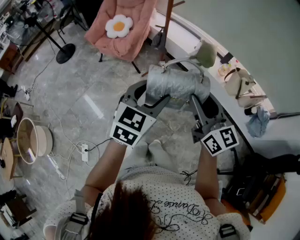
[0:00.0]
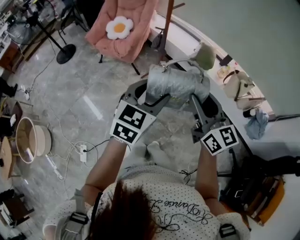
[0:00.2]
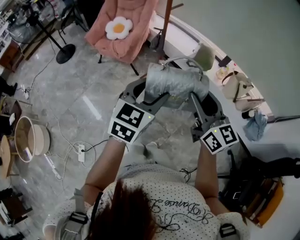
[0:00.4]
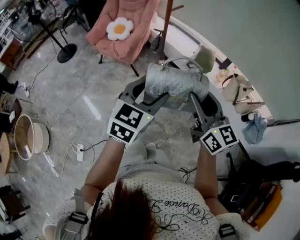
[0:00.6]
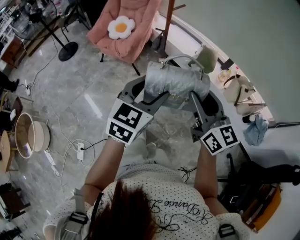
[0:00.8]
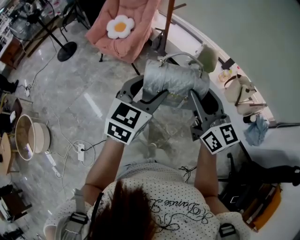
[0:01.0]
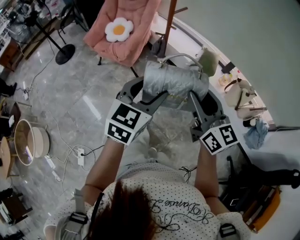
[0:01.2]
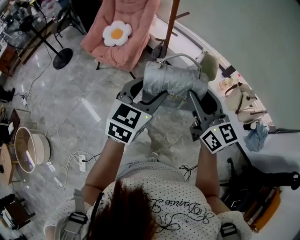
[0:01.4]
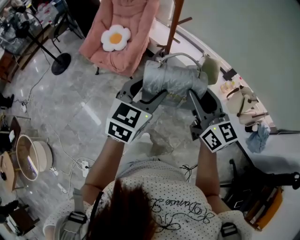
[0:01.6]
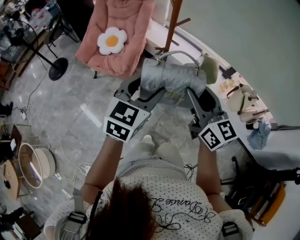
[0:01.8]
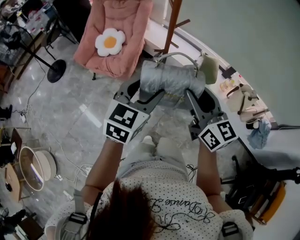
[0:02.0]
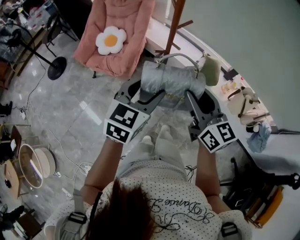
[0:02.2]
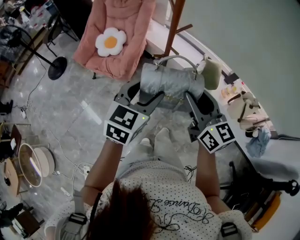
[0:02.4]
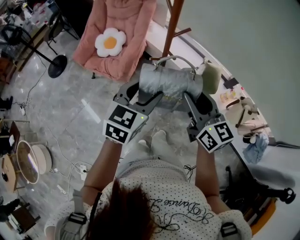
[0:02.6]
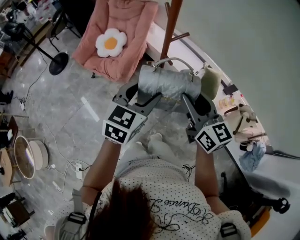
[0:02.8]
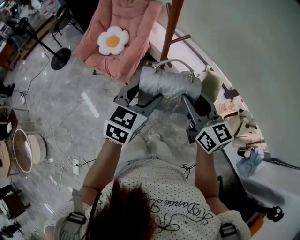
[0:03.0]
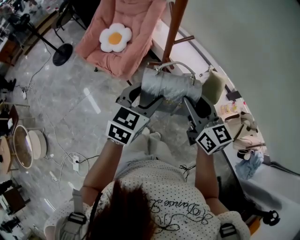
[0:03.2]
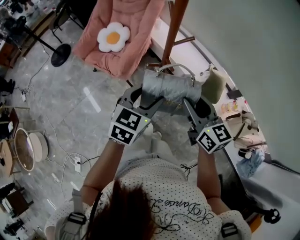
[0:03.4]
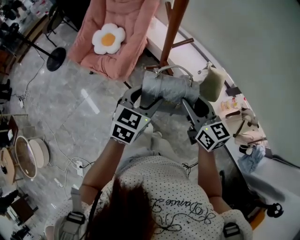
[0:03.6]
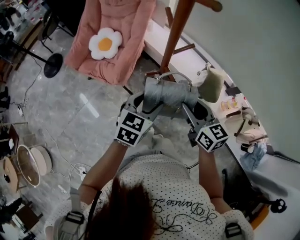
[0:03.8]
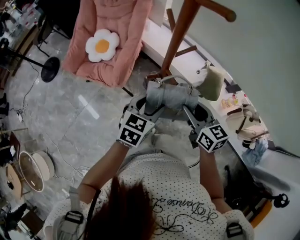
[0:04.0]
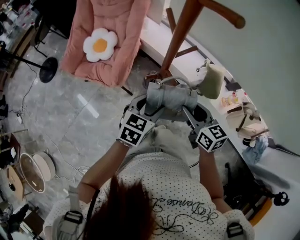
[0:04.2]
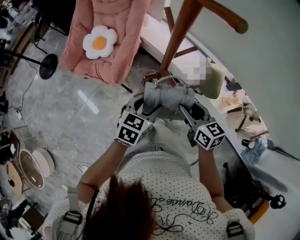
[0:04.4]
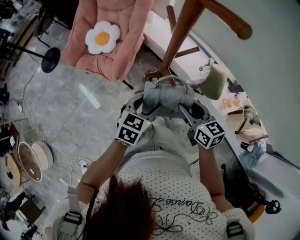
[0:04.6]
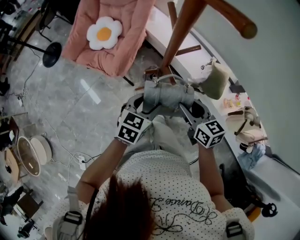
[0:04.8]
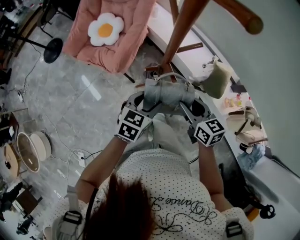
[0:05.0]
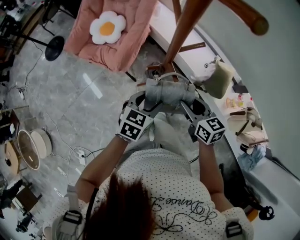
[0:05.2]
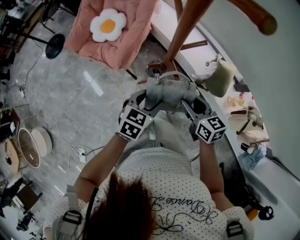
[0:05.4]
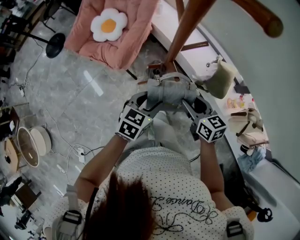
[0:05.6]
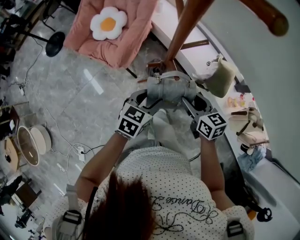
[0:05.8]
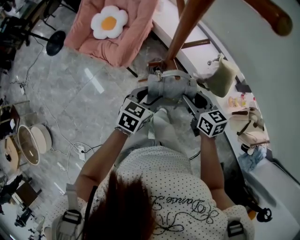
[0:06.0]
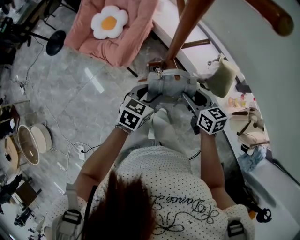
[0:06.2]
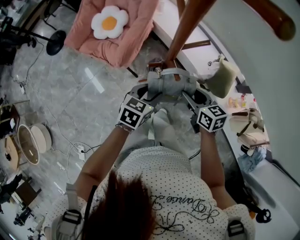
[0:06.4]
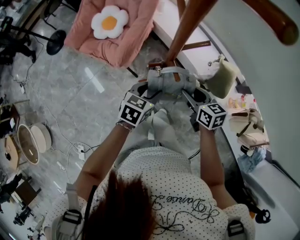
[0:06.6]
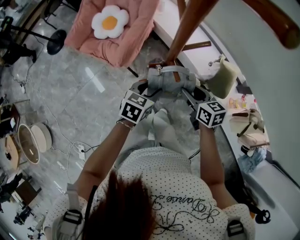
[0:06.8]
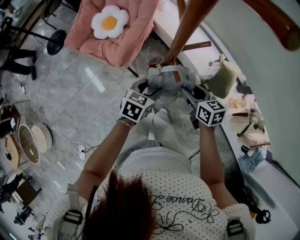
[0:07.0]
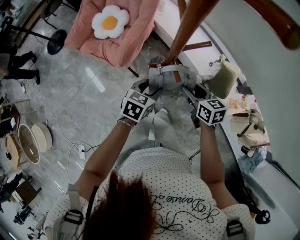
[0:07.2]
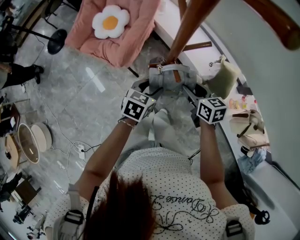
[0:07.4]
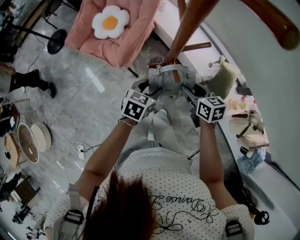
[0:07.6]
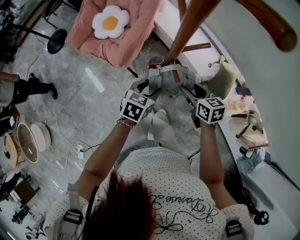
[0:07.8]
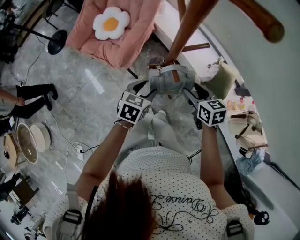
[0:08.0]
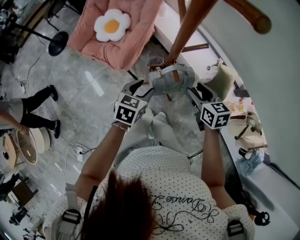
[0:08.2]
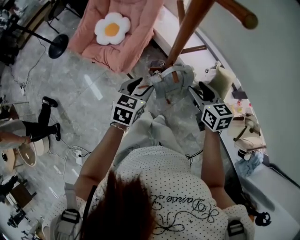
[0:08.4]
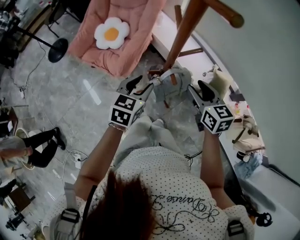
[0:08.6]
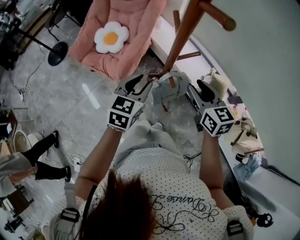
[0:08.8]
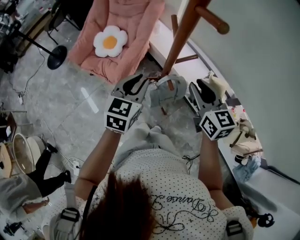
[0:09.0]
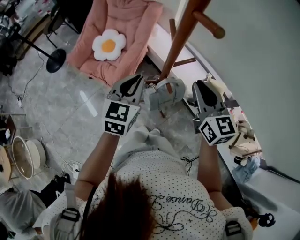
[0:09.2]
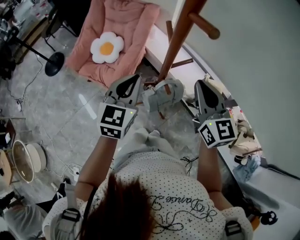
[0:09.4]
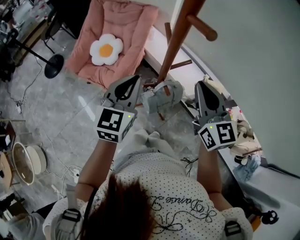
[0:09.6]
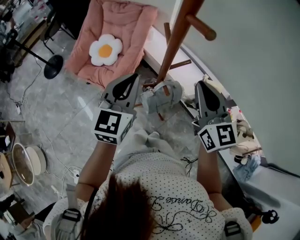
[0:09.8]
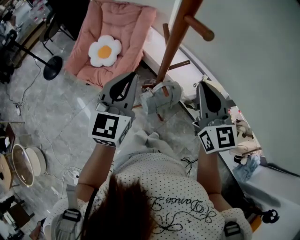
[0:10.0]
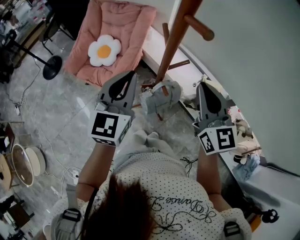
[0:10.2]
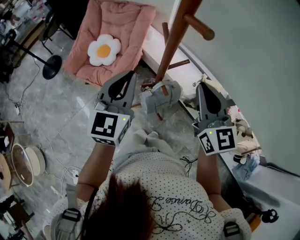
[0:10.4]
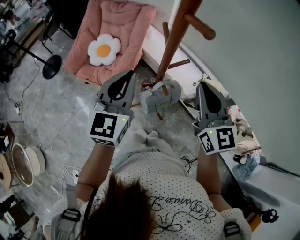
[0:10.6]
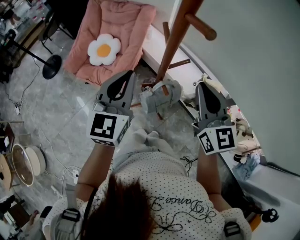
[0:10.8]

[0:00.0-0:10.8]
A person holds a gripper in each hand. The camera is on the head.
0.0 to 1.6 s: Both grippers travel together forward, about 20 cm.
1.6 to 3.0 s: The two grippers go some 20 cm forward.
3.0 to 4.6 s: The grippers both shift downward and forward by roughly 15 cm. The right gripper rotates about 20 degrees.
4.6 to 6.2 s: The two grippers go about 5 cm downward.
6.2 to 7.8 s: The grippers stay close to where they were, moving slightly.
7.8 to 9.2 s: The two grippers go approximately 20 cm upward. The left gripper rotates about 30 degrees, and closes its fingers. The right gripper turns by about 40 degrees, and closes up.
9.2 to 10.8 s: The left gripper heads upward, covering roughly 10 cm. Meanwhile the right gripper shifts some 5 cm upward.

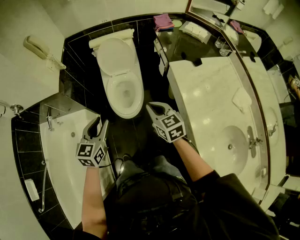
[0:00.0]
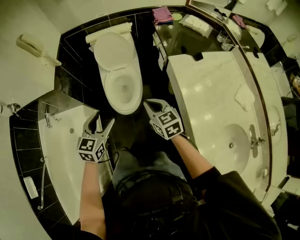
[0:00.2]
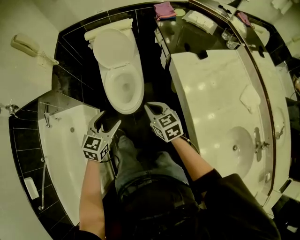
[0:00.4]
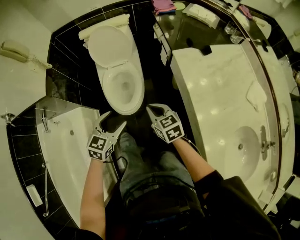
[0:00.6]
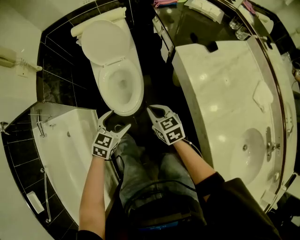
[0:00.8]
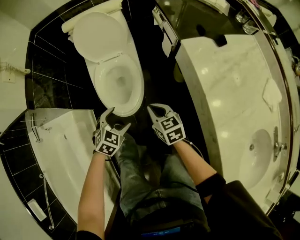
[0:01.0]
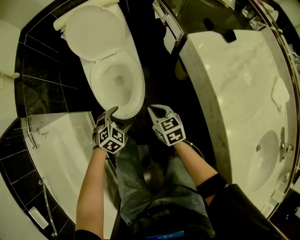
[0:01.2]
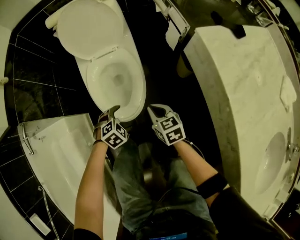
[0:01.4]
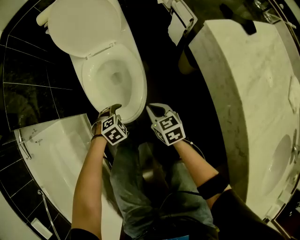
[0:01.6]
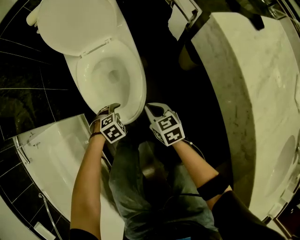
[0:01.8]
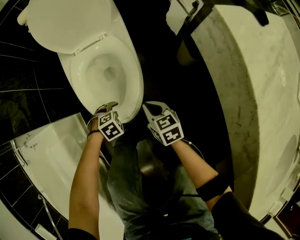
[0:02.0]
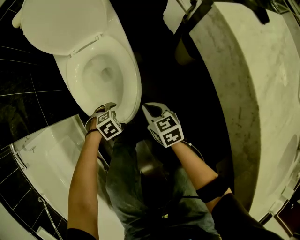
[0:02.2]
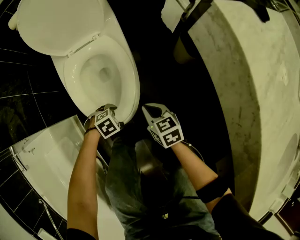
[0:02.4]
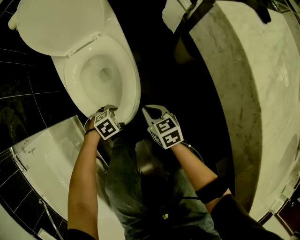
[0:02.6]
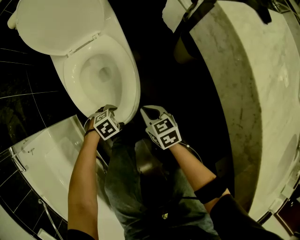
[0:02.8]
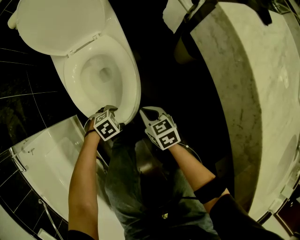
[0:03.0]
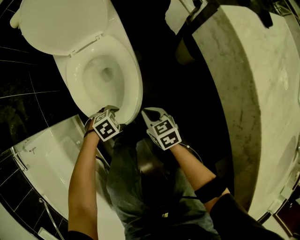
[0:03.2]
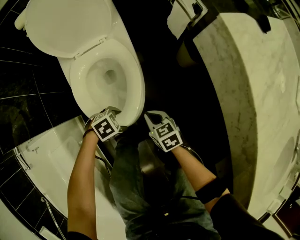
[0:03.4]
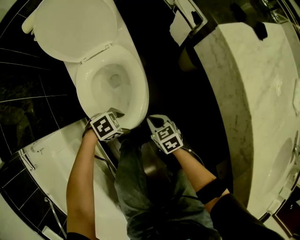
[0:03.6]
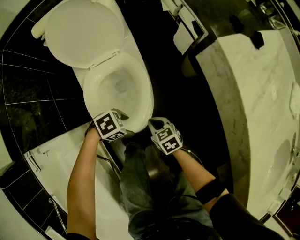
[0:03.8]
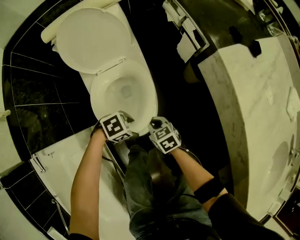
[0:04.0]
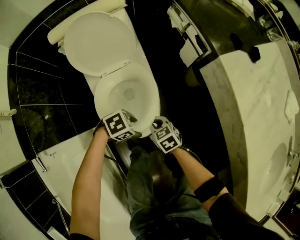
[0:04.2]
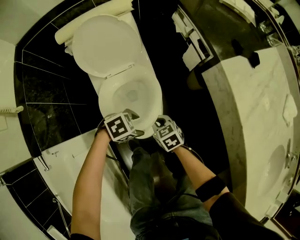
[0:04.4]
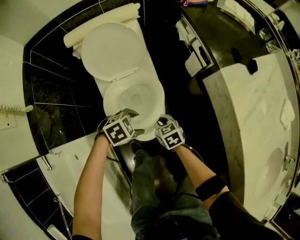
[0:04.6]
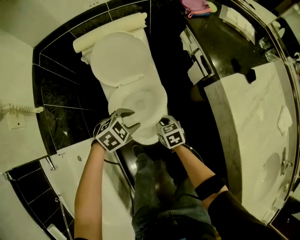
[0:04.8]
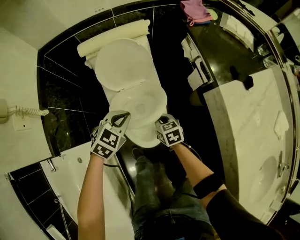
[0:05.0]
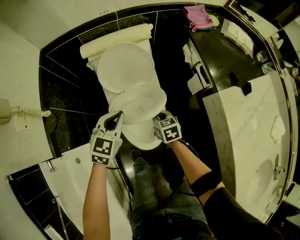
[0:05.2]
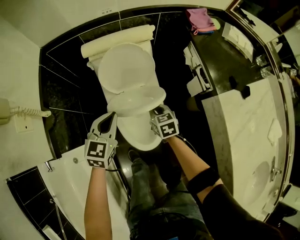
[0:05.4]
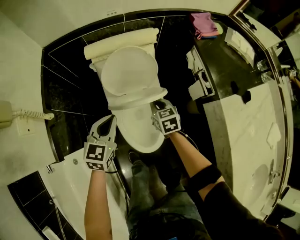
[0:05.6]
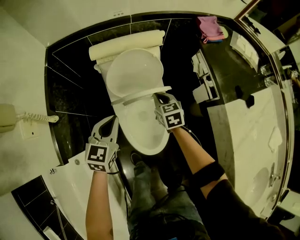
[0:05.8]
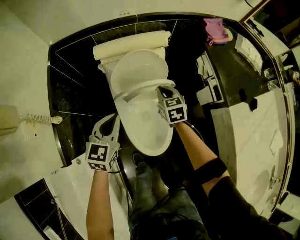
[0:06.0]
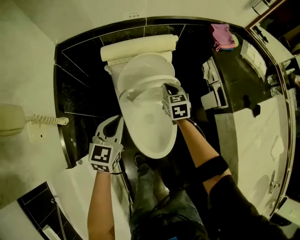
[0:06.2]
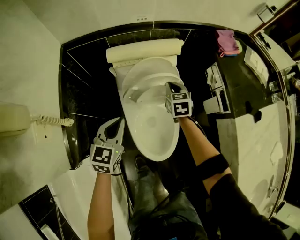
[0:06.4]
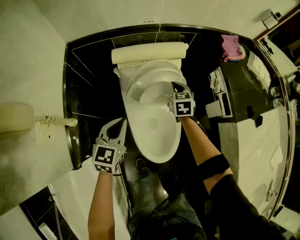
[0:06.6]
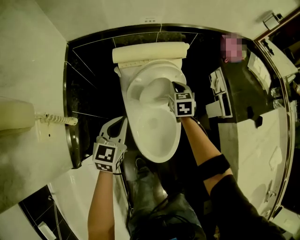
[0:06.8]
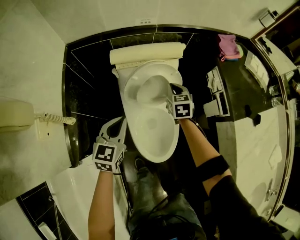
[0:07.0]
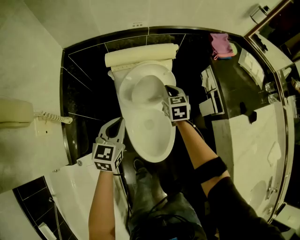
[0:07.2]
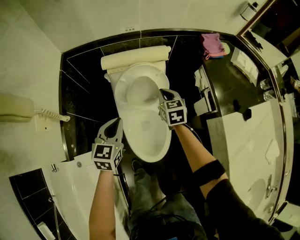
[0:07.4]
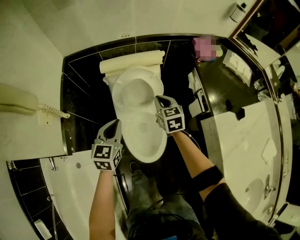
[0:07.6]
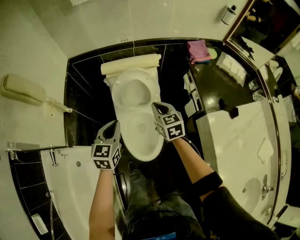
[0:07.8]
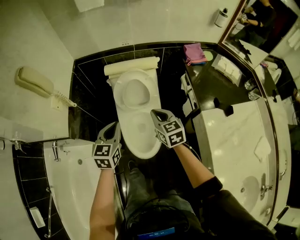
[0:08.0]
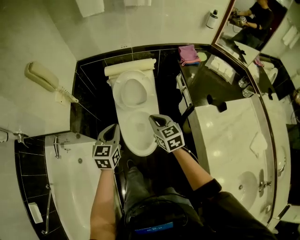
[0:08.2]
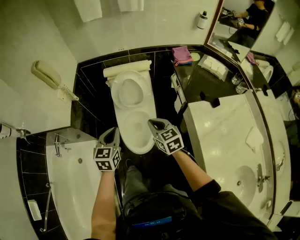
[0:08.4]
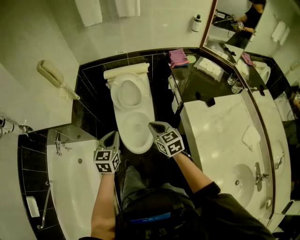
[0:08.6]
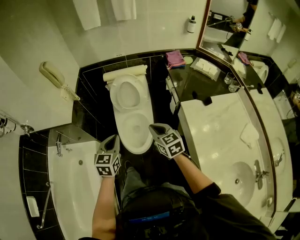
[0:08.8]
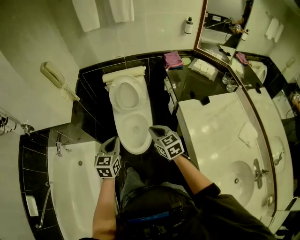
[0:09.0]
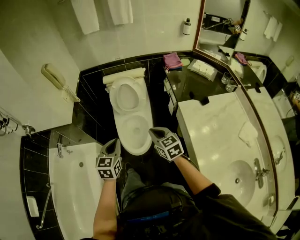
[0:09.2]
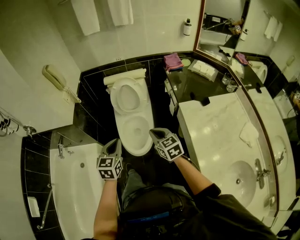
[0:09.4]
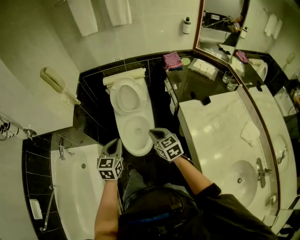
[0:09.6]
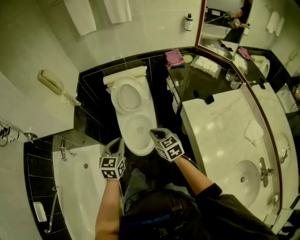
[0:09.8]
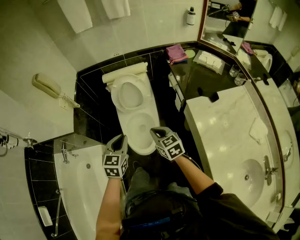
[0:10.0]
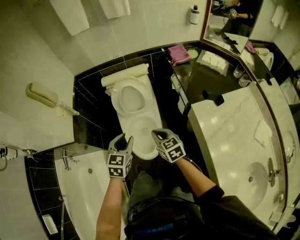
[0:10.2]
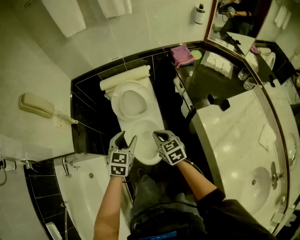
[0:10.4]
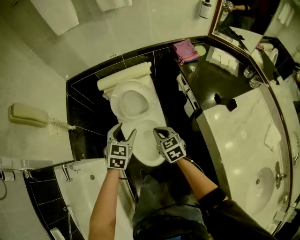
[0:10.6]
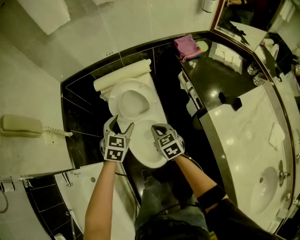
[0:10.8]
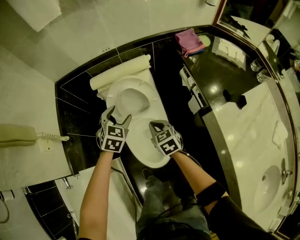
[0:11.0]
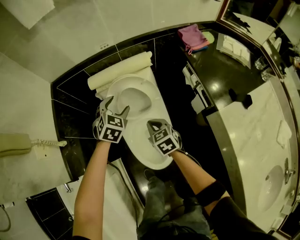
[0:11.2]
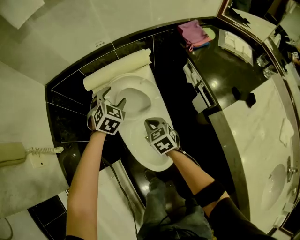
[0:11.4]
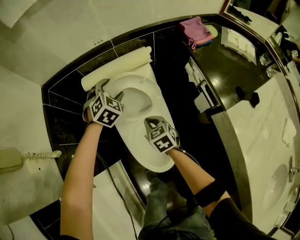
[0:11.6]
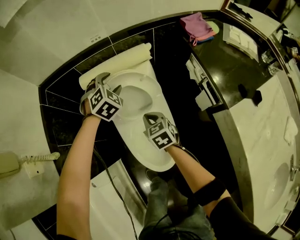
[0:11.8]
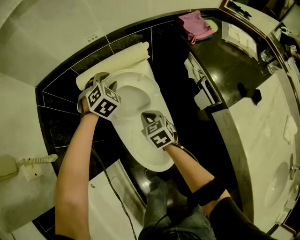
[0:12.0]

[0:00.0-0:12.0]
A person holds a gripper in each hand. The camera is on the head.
0.0 to 1.6 s: Both grippers move downward, approximately 50 cm. The left gripper tips its fingers downward by approximately 50 degrees, and opens.
1.6 to 3.0 s: The grippers both shift downward by about 10 cm.
3.0 to 4.4 s: The right gripper is displaced upward by some 15 cm. The left gripper heads upward, covering approximately 25 cm.
4.4 to 6.0 s: The left gripper ends up roughly 35 cm from where it was, swivels approximately 80 degrees, and closes up, while the right gripper moves some 35 cm.
6.0 to 7.6 s: The right gripper moves upward, roughly 10 cm. The left gripper shifts about 5 cm upward.
7.6 to 9.0 s: Both grippers travel together backward, roughly 35 cm.
9.0 to 10.4 s: The right gripper moves forward and downward, some 20 cm, while the left gripper is displaced forward by roughly 20 cm, and opens.
10.4 to 12.0 s: Both grippers travel together forward and downward, some 35 cm. The left gripper turns by about 40 degrees.

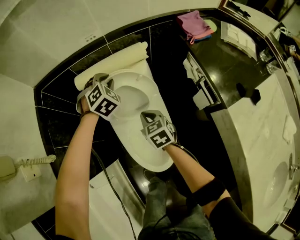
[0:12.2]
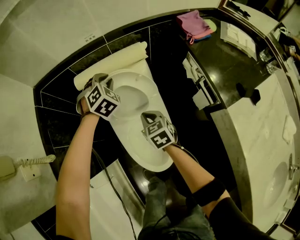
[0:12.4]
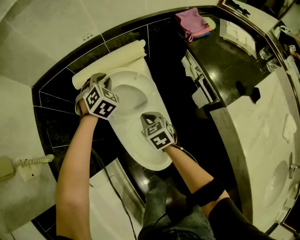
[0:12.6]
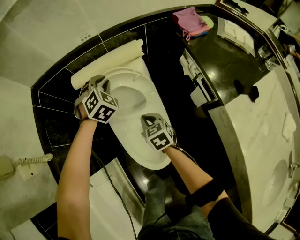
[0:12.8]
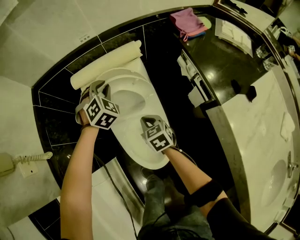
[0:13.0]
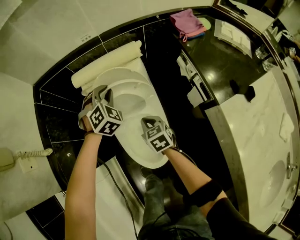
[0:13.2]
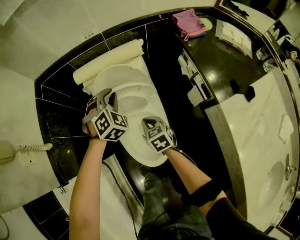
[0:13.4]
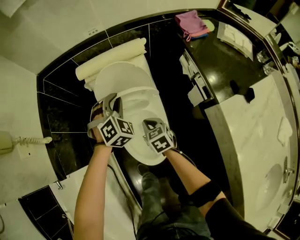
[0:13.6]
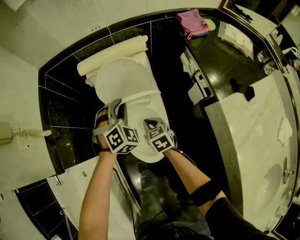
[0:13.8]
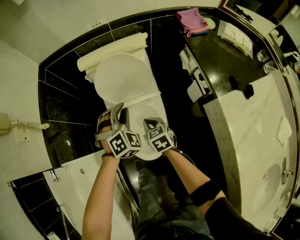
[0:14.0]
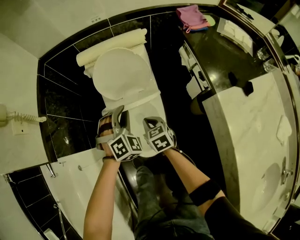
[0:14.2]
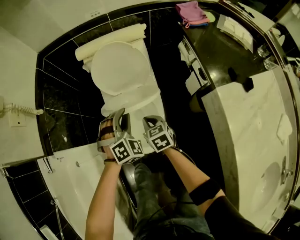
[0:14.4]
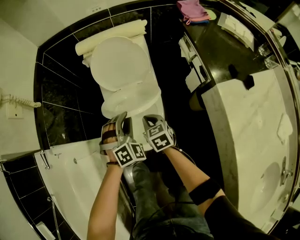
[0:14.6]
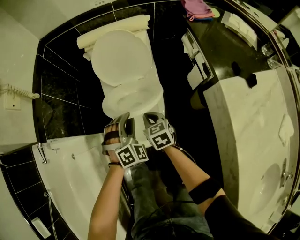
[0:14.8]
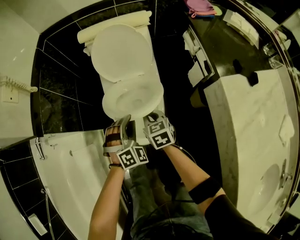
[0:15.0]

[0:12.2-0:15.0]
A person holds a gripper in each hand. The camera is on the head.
12.2 to 13.6 s: The left gripper heads backward, covering roughly 15 cm. Meanwhile the right gripper moves backward, about 10 cm.
13.6 to 15.0 s: The right gripper goes some 10 cm backward, while the left gripper shifts roughly 25 cm backward and downward.
